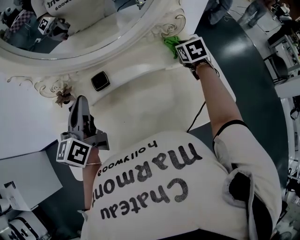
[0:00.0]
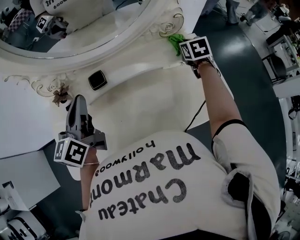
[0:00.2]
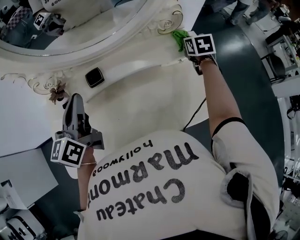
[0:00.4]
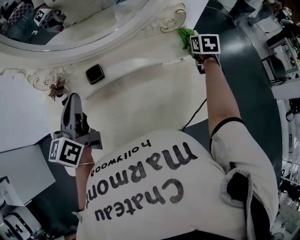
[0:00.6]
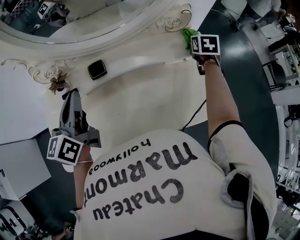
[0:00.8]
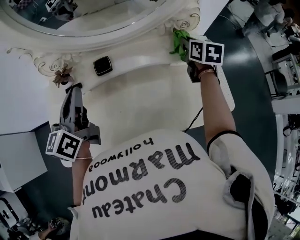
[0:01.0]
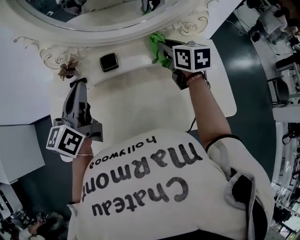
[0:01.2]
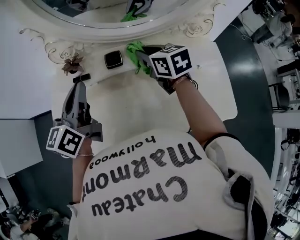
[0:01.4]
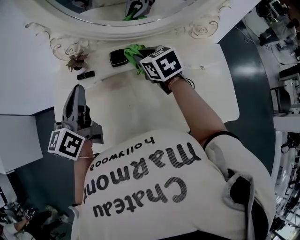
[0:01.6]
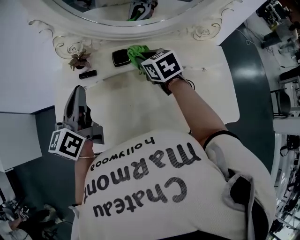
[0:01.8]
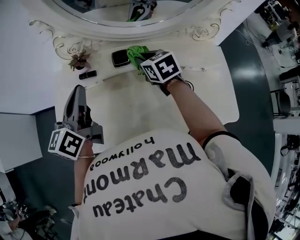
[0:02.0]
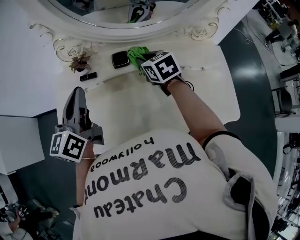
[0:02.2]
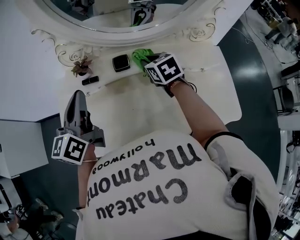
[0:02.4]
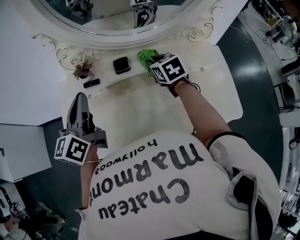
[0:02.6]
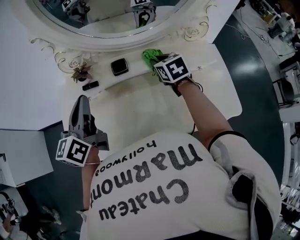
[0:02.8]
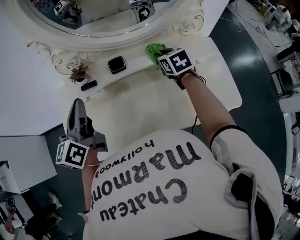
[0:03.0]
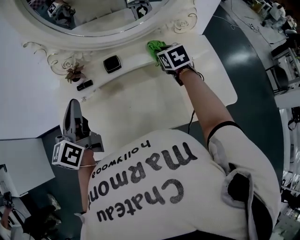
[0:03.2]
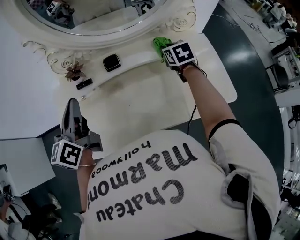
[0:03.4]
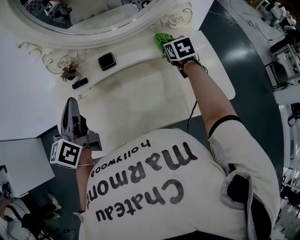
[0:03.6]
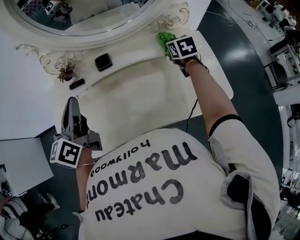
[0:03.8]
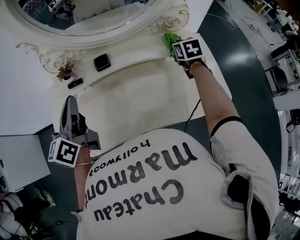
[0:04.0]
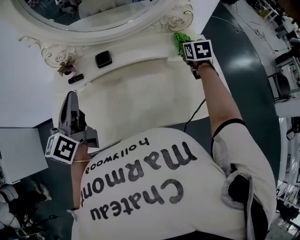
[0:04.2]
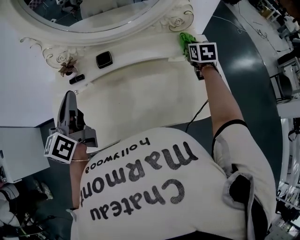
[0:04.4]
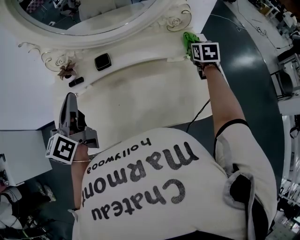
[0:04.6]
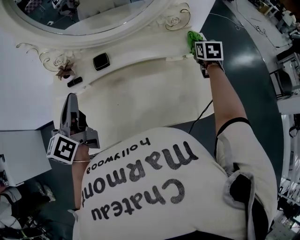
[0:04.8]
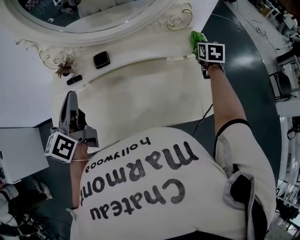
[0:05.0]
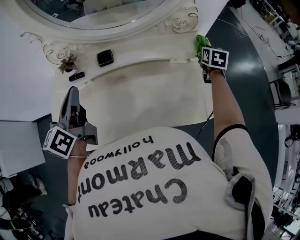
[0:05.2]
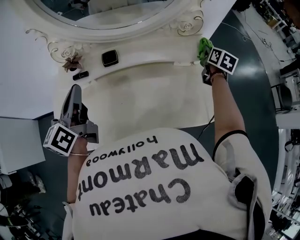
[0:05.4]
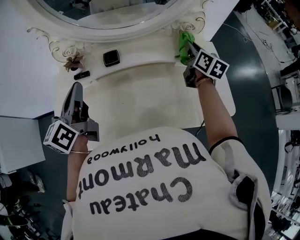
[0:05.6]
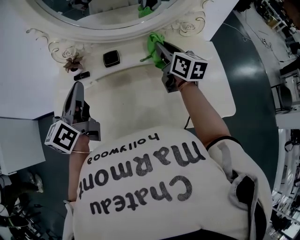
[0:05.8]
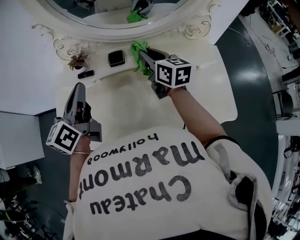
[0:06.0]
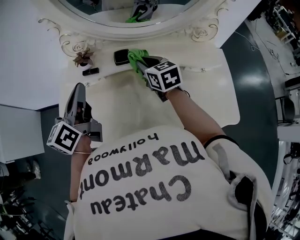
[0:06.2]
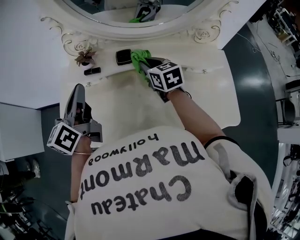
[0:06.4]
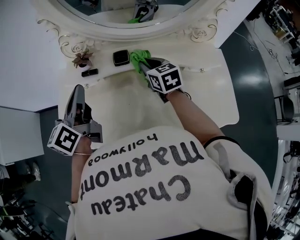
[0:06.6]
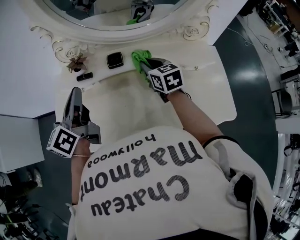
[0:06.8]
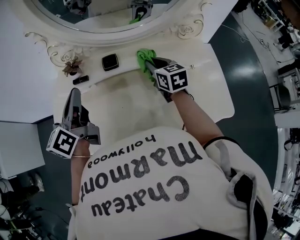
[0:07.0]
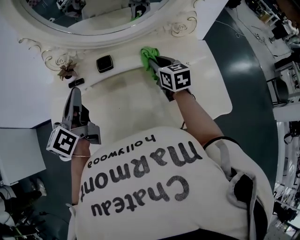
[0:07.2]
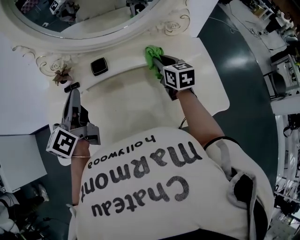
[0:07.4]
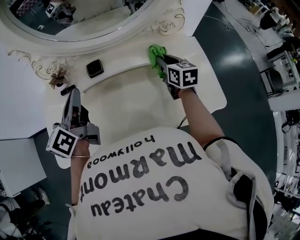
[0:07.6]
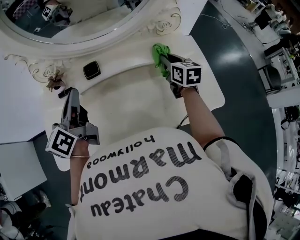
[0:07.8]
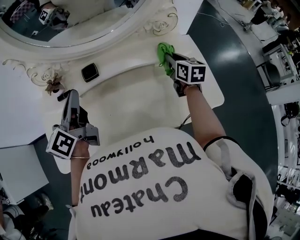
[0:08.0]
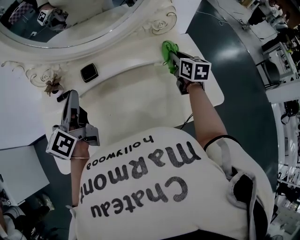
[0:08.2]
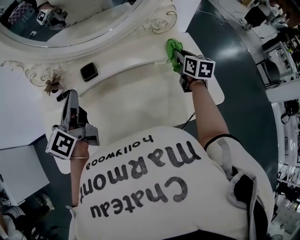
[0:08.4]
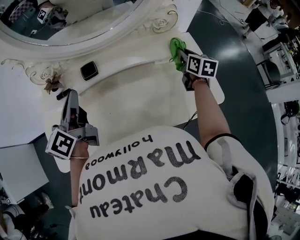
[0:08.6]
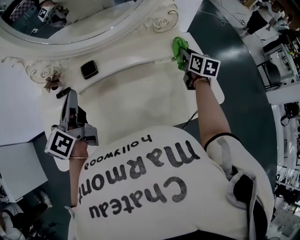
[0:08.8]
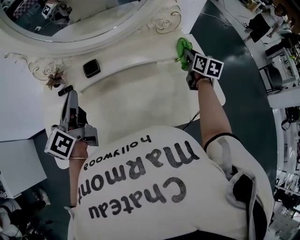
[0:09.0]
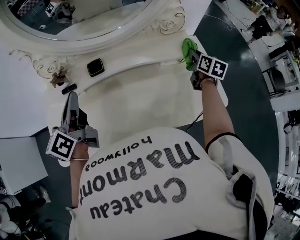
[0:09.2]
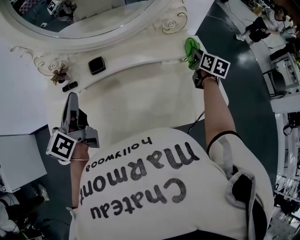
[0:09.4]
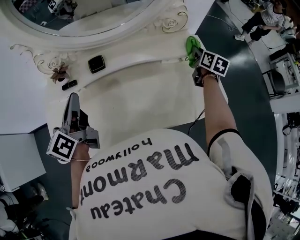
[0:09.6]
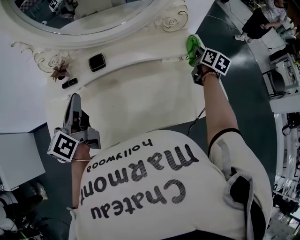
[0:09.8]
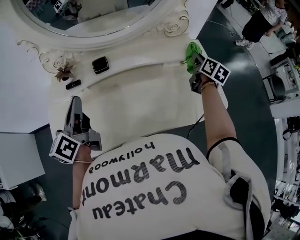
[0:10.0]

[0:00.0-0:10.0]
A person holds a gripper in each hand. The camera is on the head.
0:00.0 to 0:01.4: The right gripper moves some 25 cm, and changes its angle by approximately 30 degrees. Meanwhile the left gripper ends up about 5 cm from where it was.
0:01.4 to 0:02.8: The right gripper changes place by some 5 cm.
0:02.8 to 0:04.2: The right gripper heads to the right, covering roughly 20 cm.
0:04.2 to 0:05.8: The right gripper heads to the left and upward, covering roughly 15 cm, and changes its angle by roughly 40 degrees.
0:05.8 to 0:07.2: The right gripper goes approximately 10 cm downward, travels to the left and back again, roughly 15 cm each way, and rotates some 20 degrees.
0:07.2 to 0:08.6: The right gripper moves to the right, some 20 cm, and swivels about 30 degrees.
0:08.6 to 0:10.0: The left gripper is displaced backward by about 5 cm.

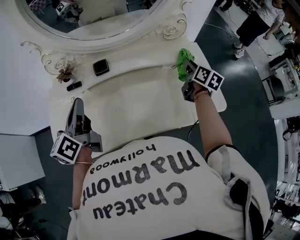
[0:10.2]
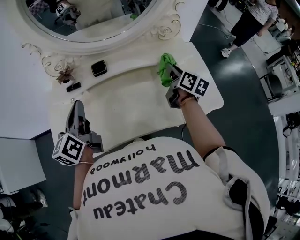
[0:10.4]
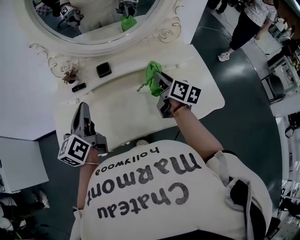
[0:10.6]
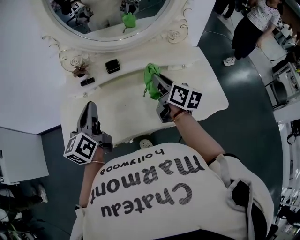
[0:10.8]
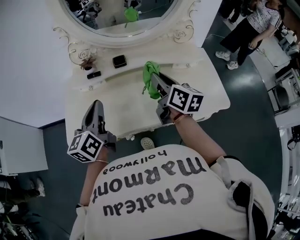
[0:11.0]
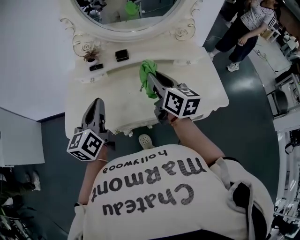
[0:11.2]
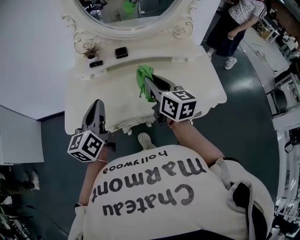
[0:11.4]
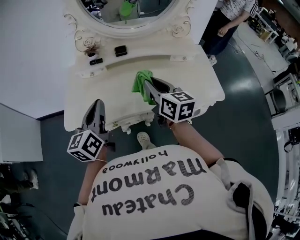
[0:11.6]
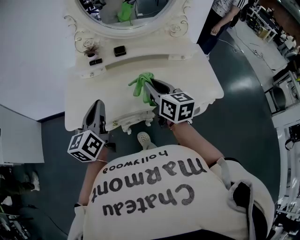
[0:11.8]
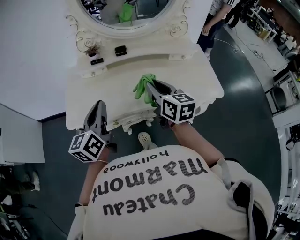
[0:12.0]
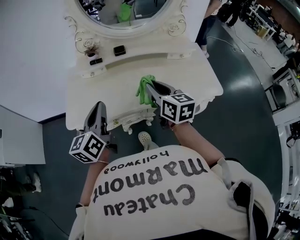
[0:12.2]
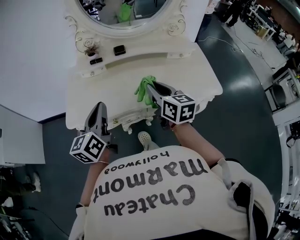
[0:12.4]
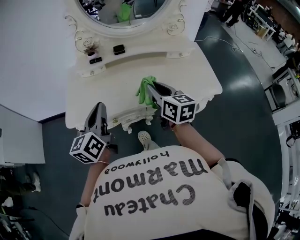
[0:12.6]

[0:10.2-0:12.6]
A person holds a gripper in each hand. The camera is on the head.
0:10.2 to 0:11.4: The left gripper goes approximately 15 cm backward. The right gripper moves to the left and backward, roughly 35 cm, and changes its angle by some 30 degrees.
0:11.4 to 0:12.6: Both grippers travel together backward, some 5 cm.

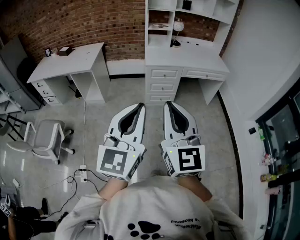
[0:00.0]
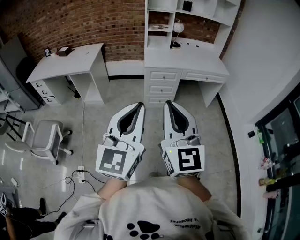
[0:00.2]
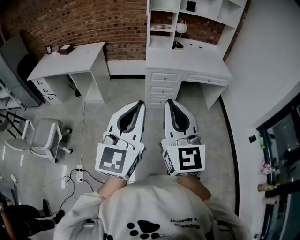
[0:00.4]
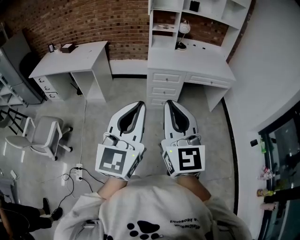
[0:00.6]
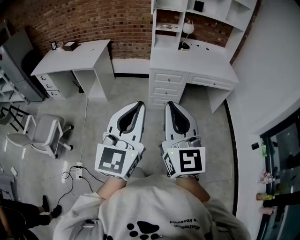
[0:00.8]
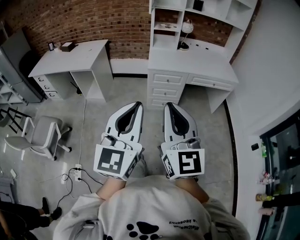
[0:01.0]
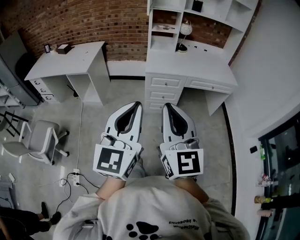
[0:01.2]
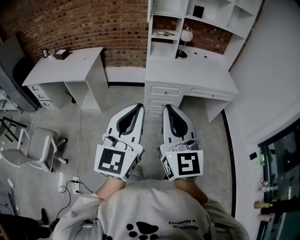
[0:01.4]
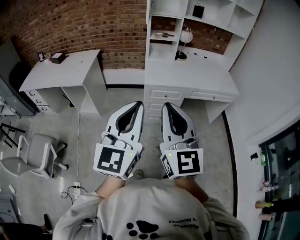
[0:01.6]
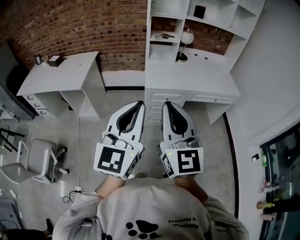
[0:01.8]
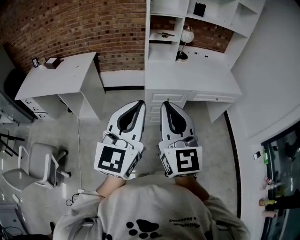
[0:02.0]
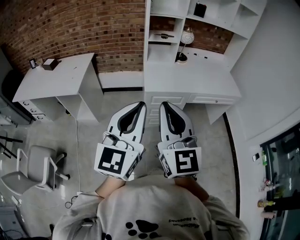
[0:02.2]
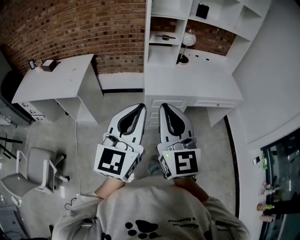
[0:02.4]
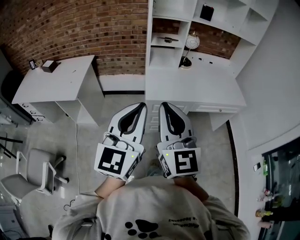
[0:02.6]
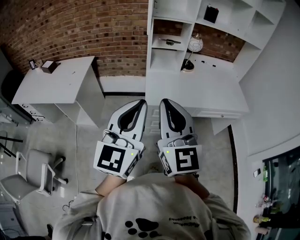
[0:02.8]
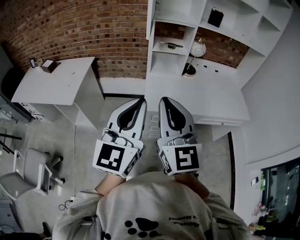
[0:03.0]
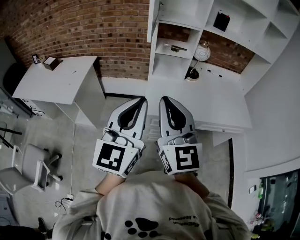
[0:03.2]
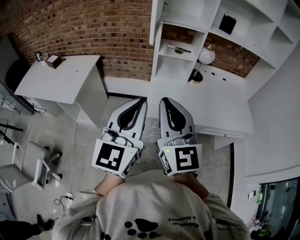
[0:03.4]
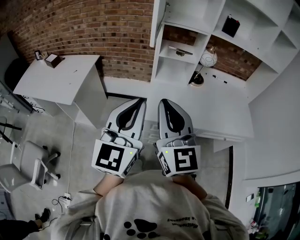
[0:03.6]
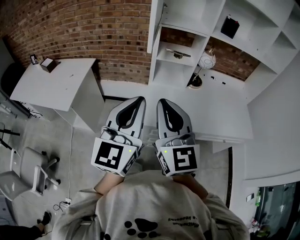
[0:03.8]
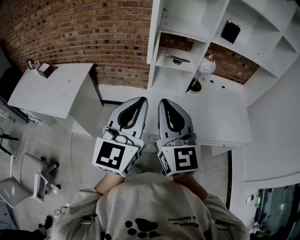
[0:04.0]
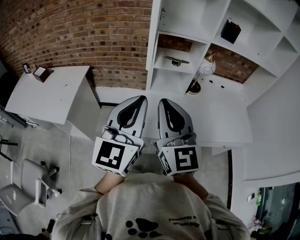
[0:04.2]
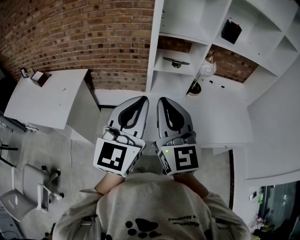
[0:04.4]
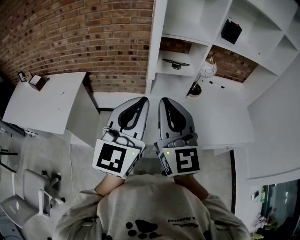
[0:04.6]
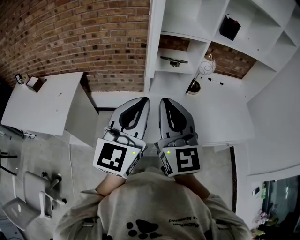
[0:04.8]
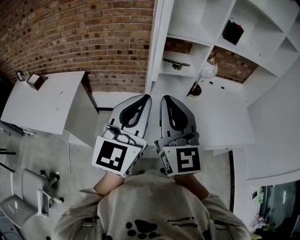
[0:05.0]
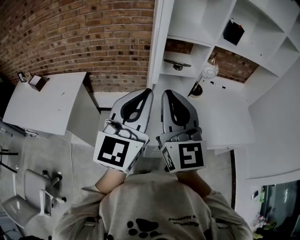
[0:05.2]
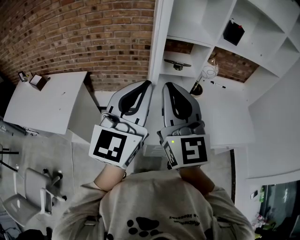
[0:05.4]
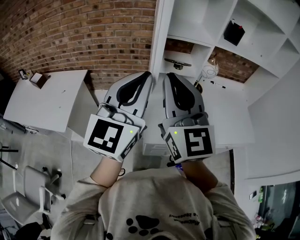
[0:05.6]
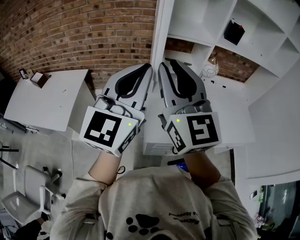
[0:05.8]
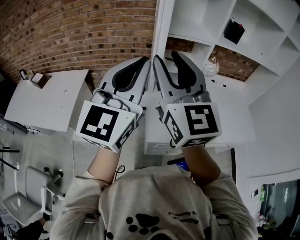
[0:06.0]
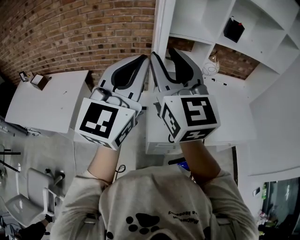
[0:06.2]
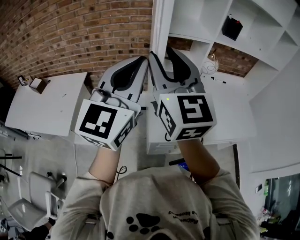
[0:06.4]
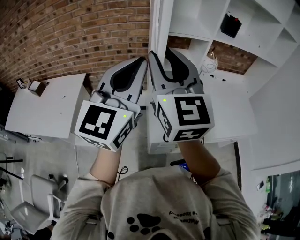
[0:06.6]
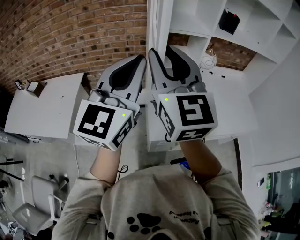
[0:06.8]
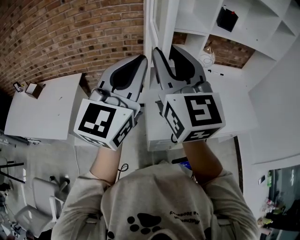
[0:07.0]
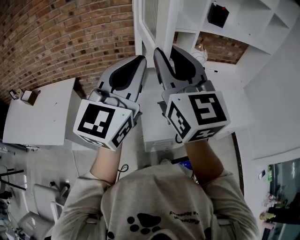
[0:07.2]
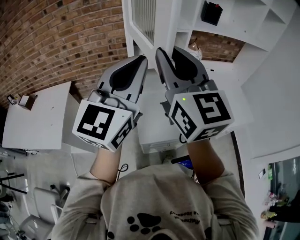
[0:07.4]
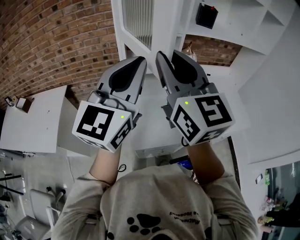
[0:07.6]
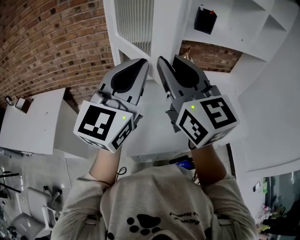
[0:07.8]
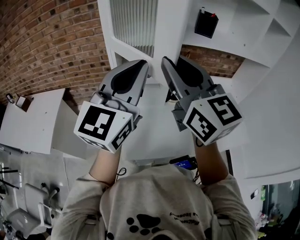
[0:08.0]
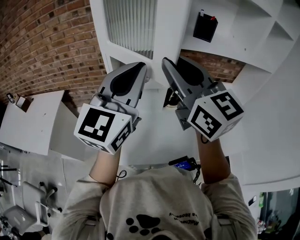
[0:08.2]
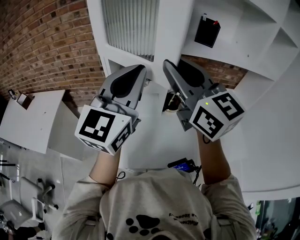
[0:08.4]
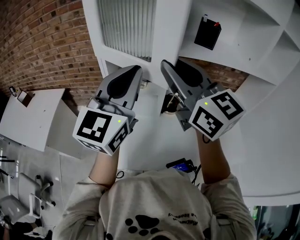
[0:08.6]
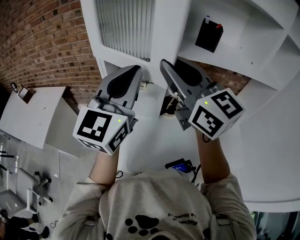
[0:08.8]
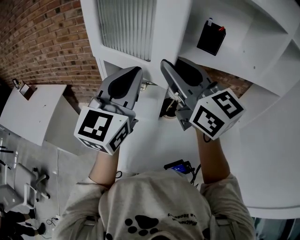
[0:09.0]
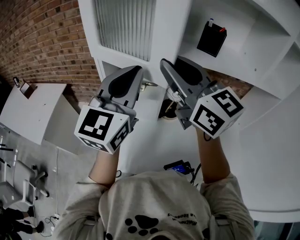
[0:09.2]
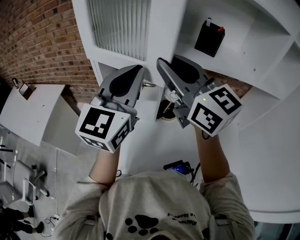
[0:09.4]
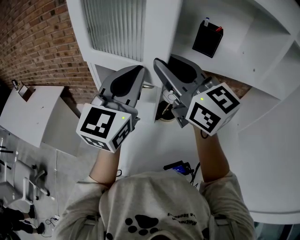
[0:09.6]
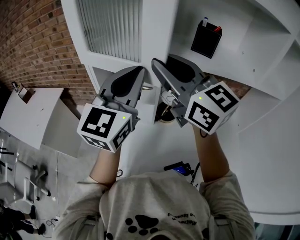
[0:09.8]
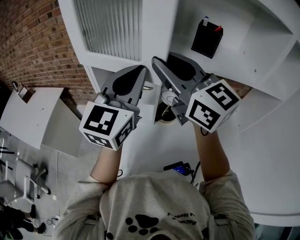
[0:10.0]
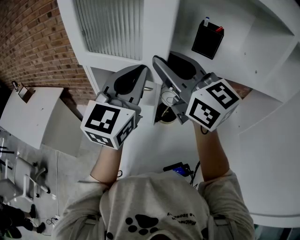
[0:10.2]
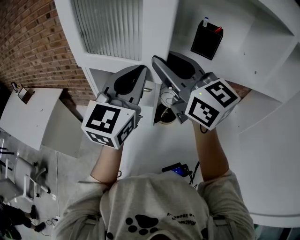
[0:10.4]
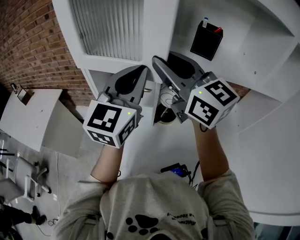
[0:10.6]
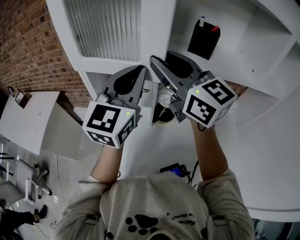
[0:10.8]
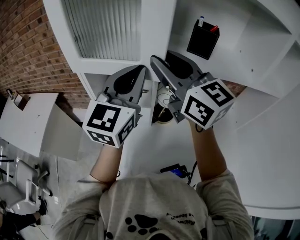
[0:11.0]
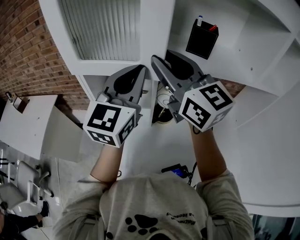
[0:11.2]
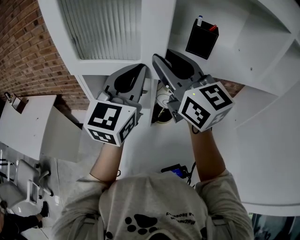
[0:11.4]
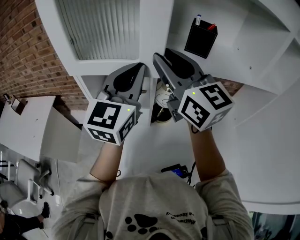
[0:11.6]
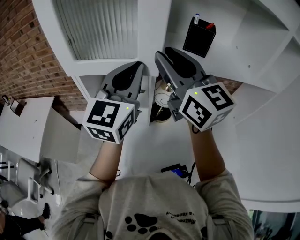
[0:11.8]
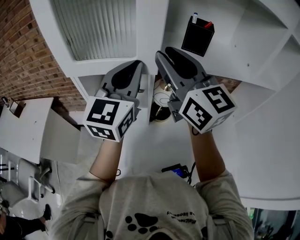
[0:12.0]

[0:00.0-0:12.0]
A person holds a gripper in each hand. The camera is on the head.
0:00.0 to 0:01.6: The grippers both shift forward by roughly 30 cm.
0:01.6 to 0:03.0: Both grippers move forward, some 30 cm.
0:03.0 to 0:04.4: The grippers both shift forward by roughly 25 cm.
0:04.4 to 0:06.0: Both grippers travel together upward and forward, approximately 10 cm. The right gripper opens up.
0:06.0 to 0:07.6: The grippers both shift to the right and forward by roughly 15 cm.
0:07.6 to 0:09.0: The left gripper shifts approximately 20 cm forward and to the right. The right gripper moves to the right and forward, some 20 cm, and turns by approximately 30 degrees.
0:09.0 to 0:10.4: The left gripper travels to the right and forward by roughly 10 cm. The right gripper shifts some 5 cm forward.
0:10.4 to 0:12.0: The grippers make only small movements.
